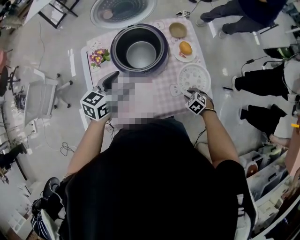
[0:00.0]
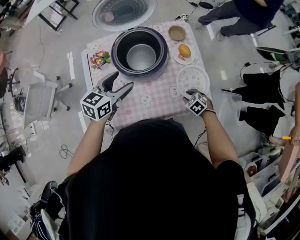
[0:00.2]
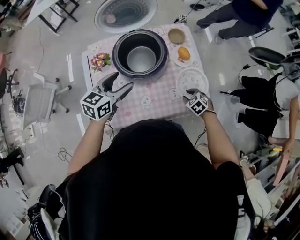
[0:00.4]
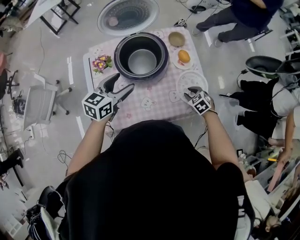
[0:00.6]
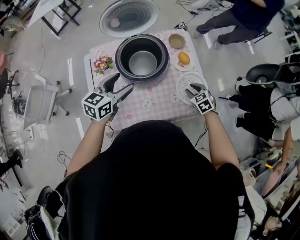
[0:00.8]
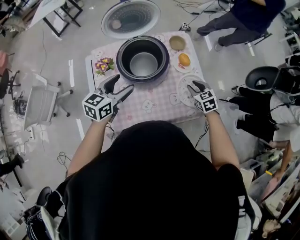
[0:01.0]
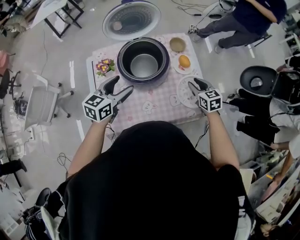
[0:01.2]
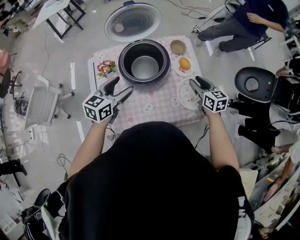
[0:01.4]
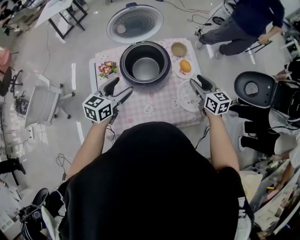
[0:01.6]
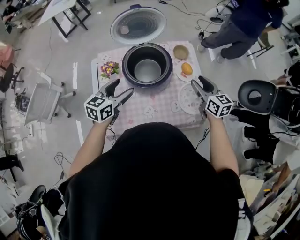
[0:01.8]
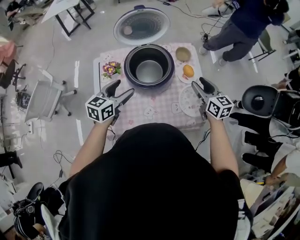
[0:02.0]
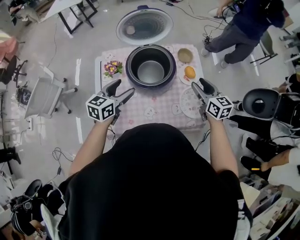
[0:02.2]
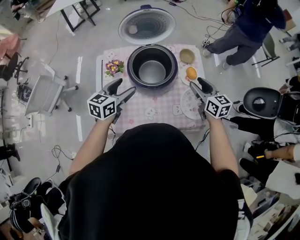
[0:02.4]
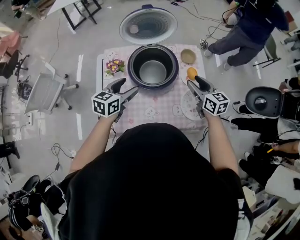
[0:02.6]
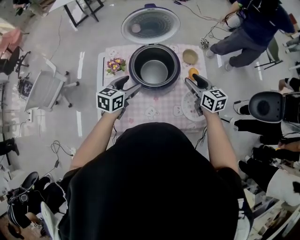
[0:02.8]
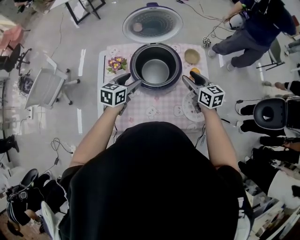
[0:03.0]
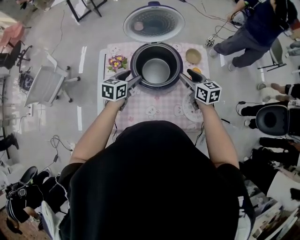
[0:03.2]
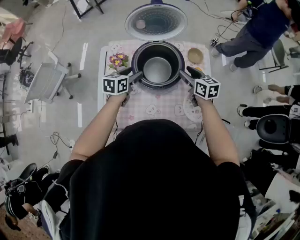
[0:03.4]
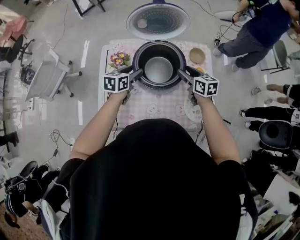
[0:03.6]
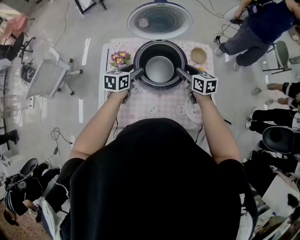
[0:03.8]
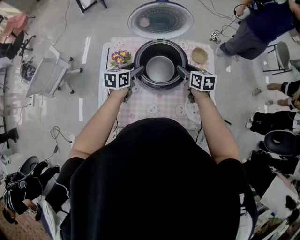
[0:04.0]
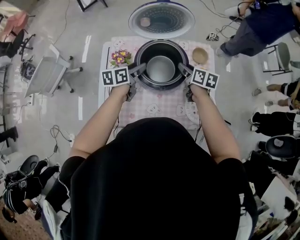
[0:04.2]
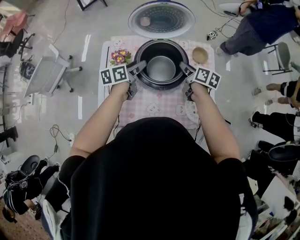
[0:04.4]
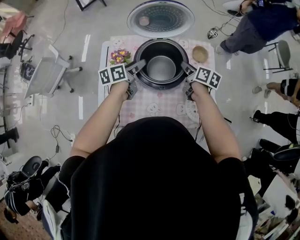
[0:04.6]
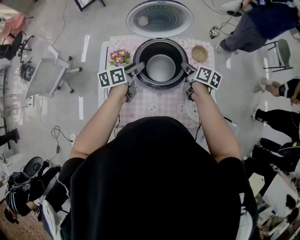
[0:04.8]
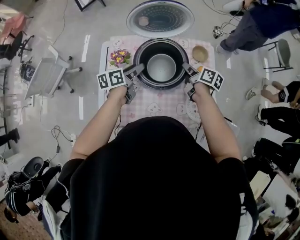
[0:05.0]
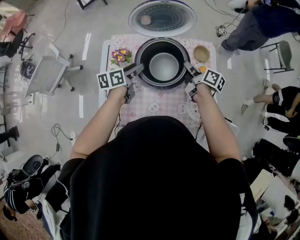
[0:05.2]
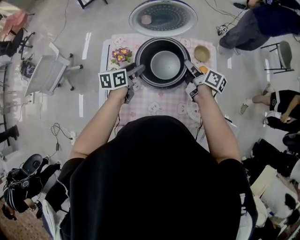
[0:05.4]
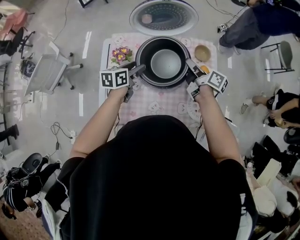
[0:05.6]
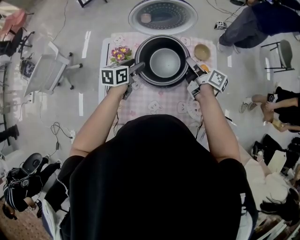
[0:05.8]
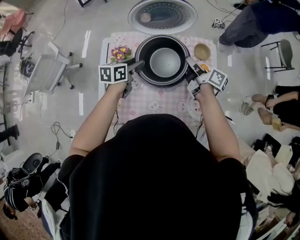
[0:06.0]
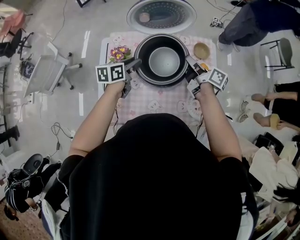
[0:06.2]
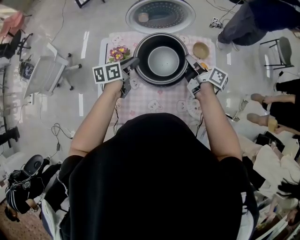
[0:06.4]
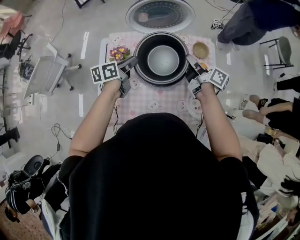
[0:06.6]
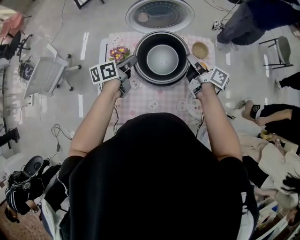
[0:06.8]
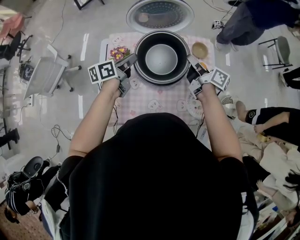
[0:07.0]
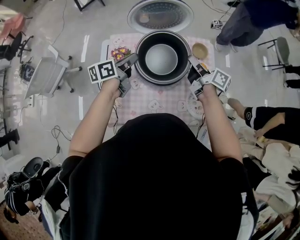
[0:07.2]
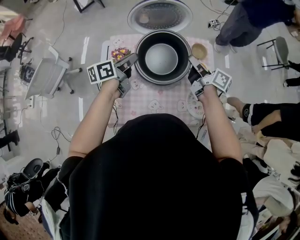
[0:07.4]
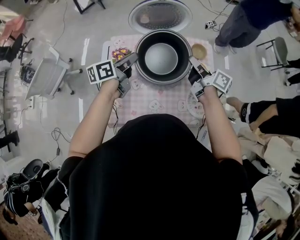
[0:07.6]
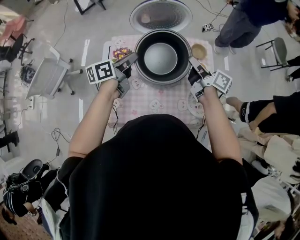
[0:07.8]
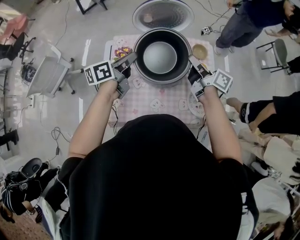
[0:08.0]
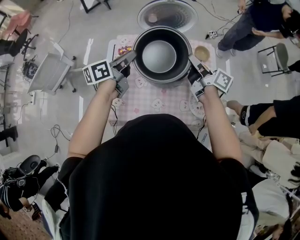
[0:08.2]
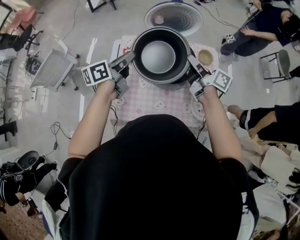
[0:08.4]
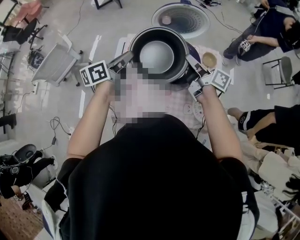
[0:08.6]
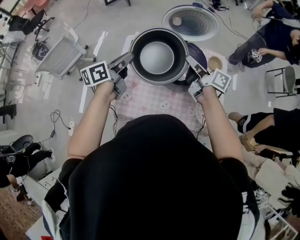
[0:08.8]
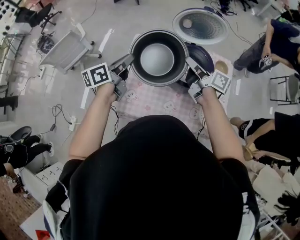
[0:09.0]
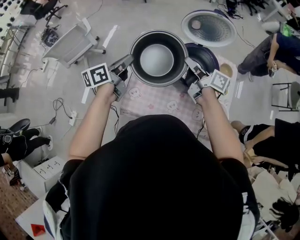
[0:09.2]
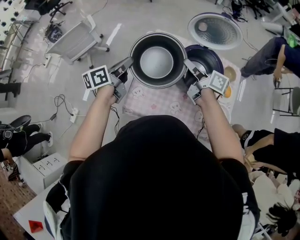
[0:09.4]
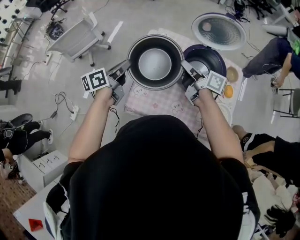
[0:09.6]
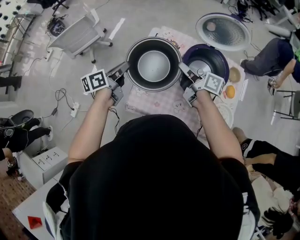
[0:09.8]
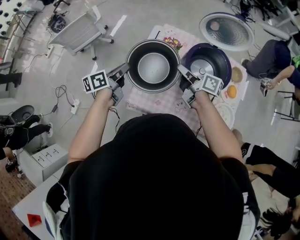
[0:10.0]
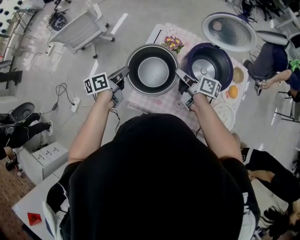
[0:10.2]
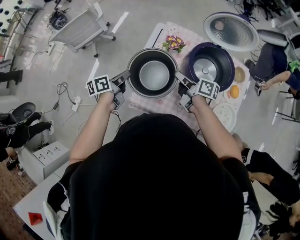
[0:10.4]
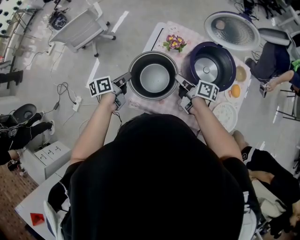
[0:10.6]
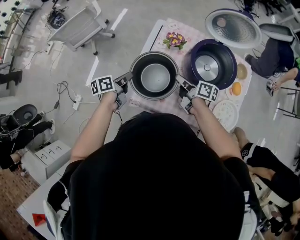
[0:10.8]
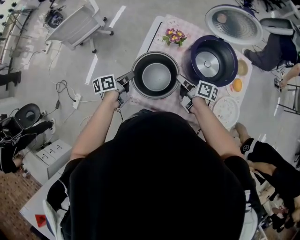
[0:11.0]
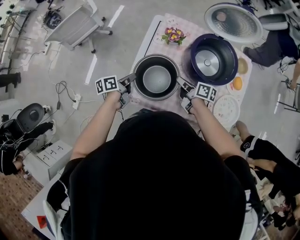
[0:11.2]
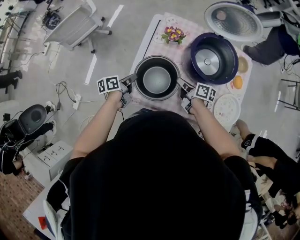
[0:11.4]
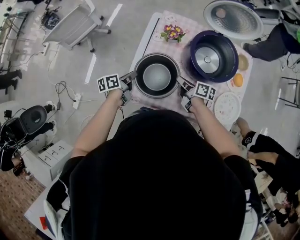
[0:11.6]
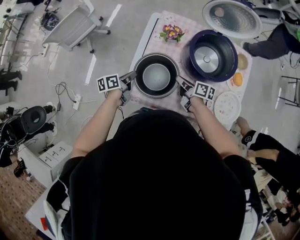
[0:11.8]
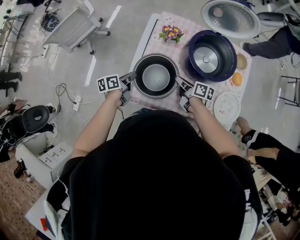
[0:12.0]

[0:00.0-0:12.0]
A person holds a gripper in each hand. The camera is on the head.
0.0 to 1.6 s: The right gripper heads upward and forward, covering about 30 cm, and tips its fingers upward by some 50 degrees. Meanwhile the left gripper changes place by about 5 cm.
1.6 to 3.0 s: The left gripper heads downward, covering approximately 5 cm. The right gripper shifts some 10 cm to the left and forward.
3.0 to 4.4 s: The right gripper is displaced forward and downward by about 10 cm, and turns by about 30 degrees. The left gripper goes roughly 5 cm forward, and turns by approximately 30 degrees.
4.4 to 6.0 s: The right gripper rotates roughly 20 degrees.
6.0 to 7.6 s: The right gripper changes place by approximately 5 cm, while the left gripper goes about 10 cm upward, rotates approximately 20 degrees, and closes its fingers.
7.6 to 9.0 s: The right gripper heads to the left, covering roughly 15 cm. Meanwhile the left gripper travels to the left and backward by approximately 15 cm.
9.0 to 10.4 s: The left gripper is displaced downward, to the left and backward by about 20 cm, and swivels roughly 20 degrees; the right gripper is displaced to the left and downward by about 20 cm.
10.4 to 12.0 s: Both grippers travel together downward, roughly 10 cm.

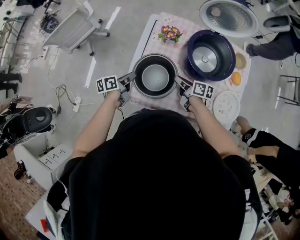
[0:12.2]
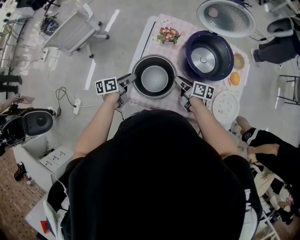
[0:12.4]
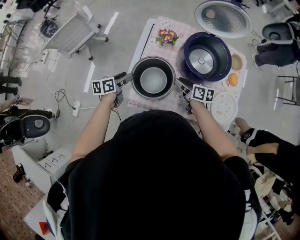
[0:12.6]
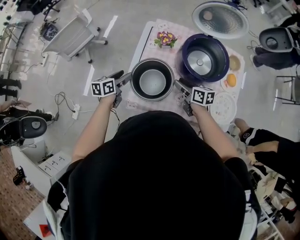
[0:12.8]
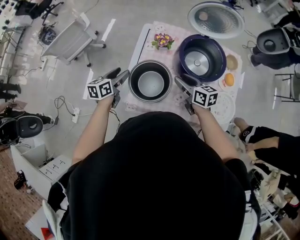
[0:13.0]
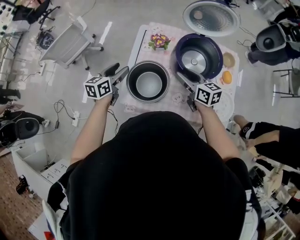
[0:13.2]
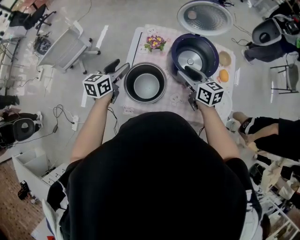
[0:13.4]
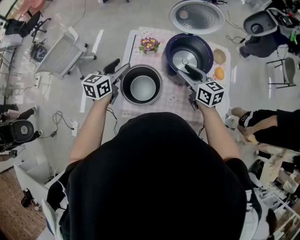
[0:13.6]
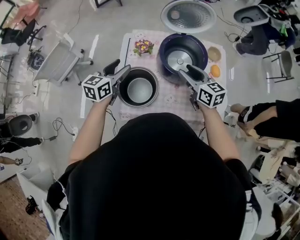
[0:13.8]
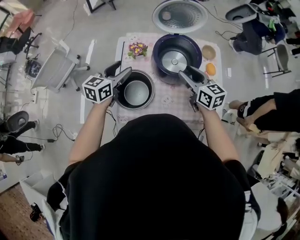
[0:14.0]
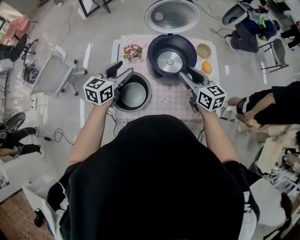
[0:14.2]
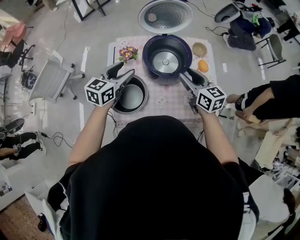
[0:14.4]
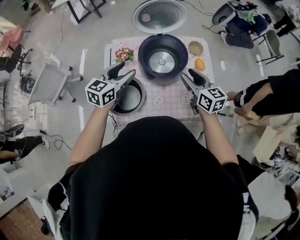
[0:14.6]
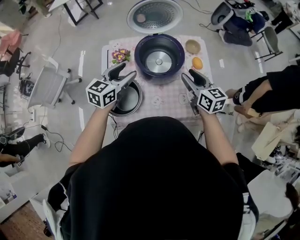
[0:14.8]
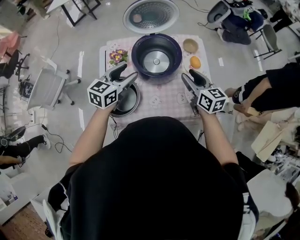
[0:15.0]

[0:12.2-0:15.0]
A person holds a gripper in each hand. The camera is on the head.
12.2 to 13.6 s: The right gripper shifts some 20 cm upward and to the right, rotates roughly 40 degrees, and opens up. The left gripper moves upward, some 20 cm, rolls clockwise, seen from behind, by about 40 degrees, and opens up.
13.6 to 15.0 s: The grippers both shift to the right by roughly 20 cm. The left gripper swivels approximately 20 degrees, while the right gripper changes its angle by roughly 20 degrees.

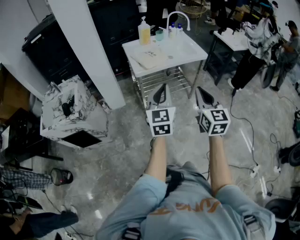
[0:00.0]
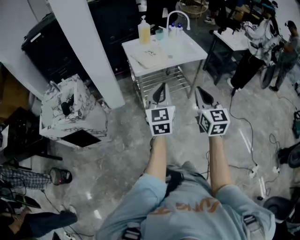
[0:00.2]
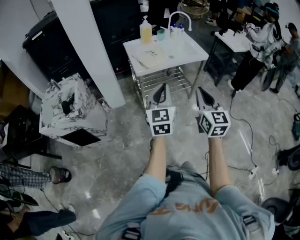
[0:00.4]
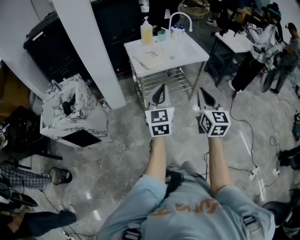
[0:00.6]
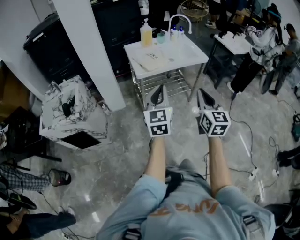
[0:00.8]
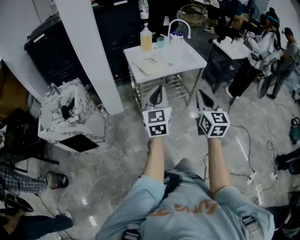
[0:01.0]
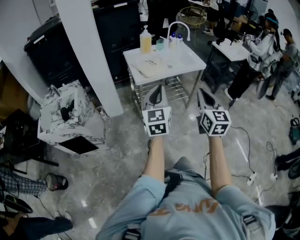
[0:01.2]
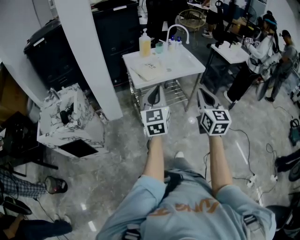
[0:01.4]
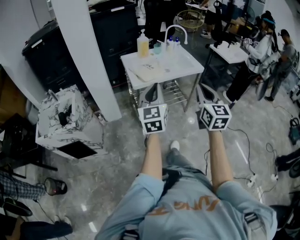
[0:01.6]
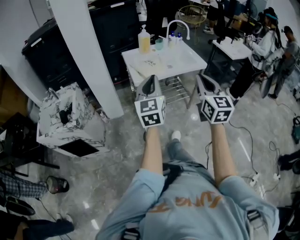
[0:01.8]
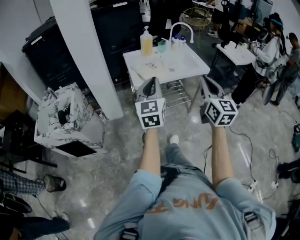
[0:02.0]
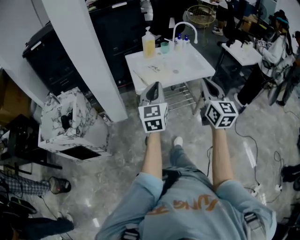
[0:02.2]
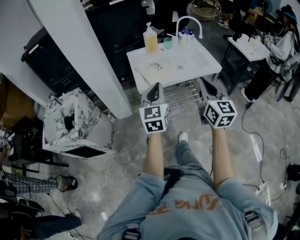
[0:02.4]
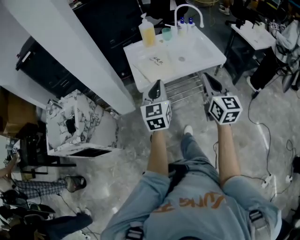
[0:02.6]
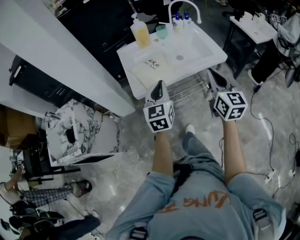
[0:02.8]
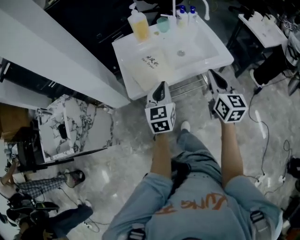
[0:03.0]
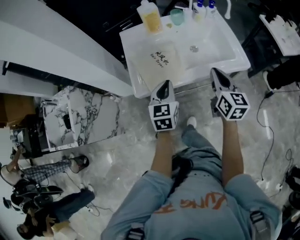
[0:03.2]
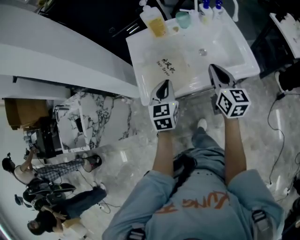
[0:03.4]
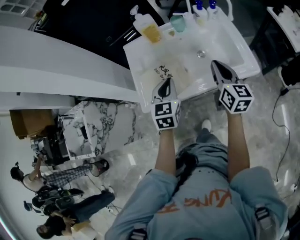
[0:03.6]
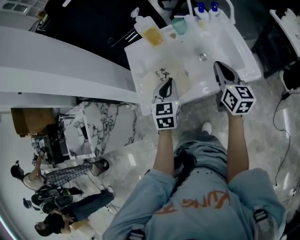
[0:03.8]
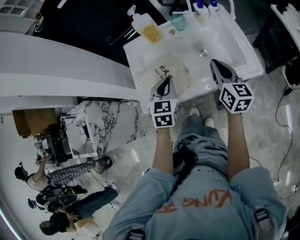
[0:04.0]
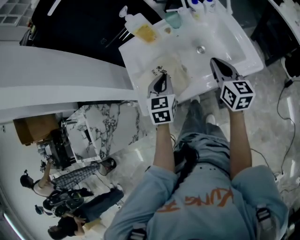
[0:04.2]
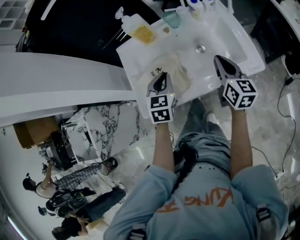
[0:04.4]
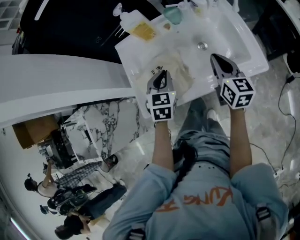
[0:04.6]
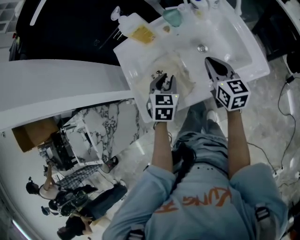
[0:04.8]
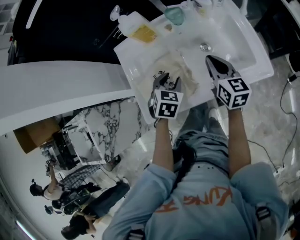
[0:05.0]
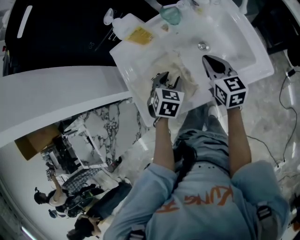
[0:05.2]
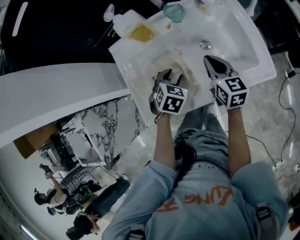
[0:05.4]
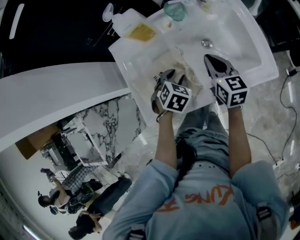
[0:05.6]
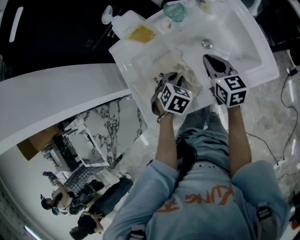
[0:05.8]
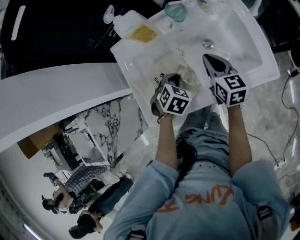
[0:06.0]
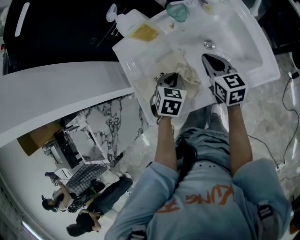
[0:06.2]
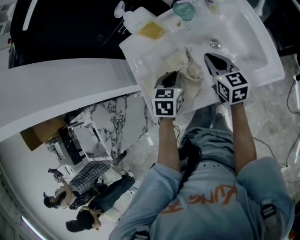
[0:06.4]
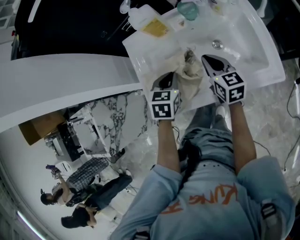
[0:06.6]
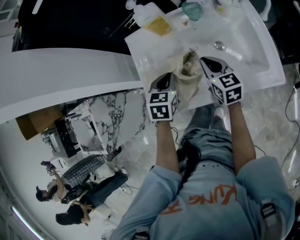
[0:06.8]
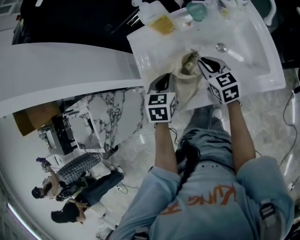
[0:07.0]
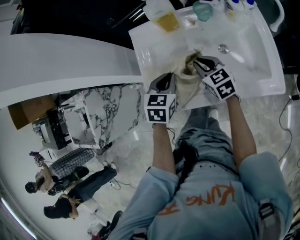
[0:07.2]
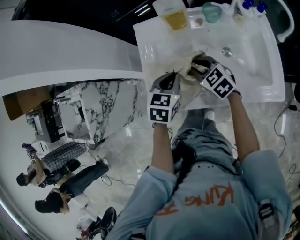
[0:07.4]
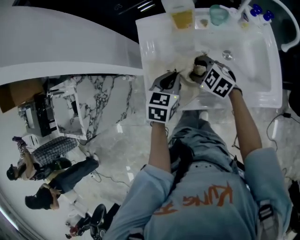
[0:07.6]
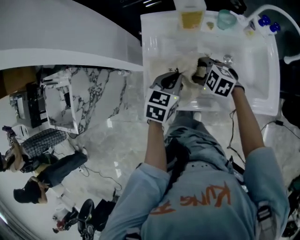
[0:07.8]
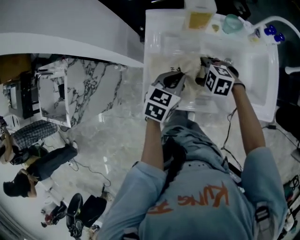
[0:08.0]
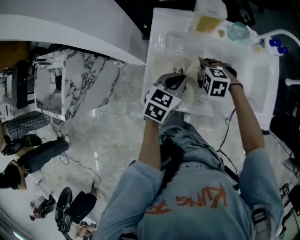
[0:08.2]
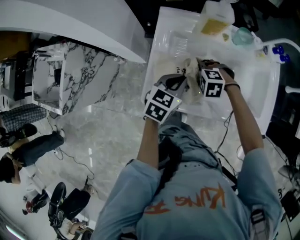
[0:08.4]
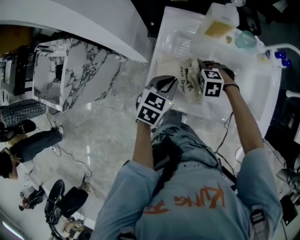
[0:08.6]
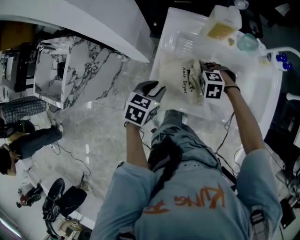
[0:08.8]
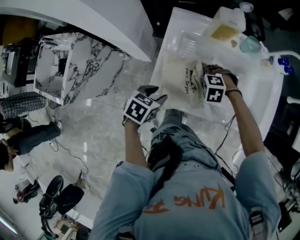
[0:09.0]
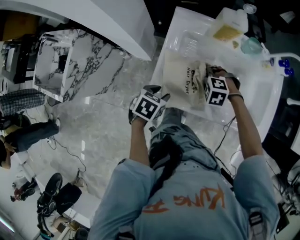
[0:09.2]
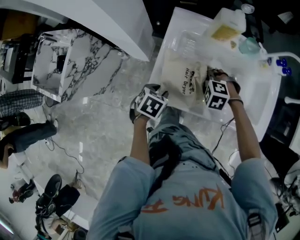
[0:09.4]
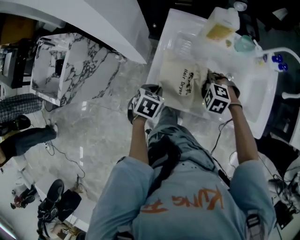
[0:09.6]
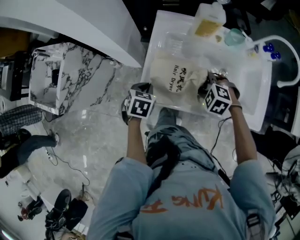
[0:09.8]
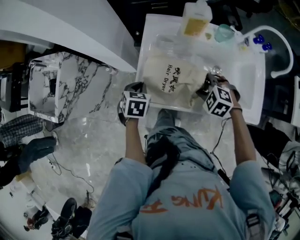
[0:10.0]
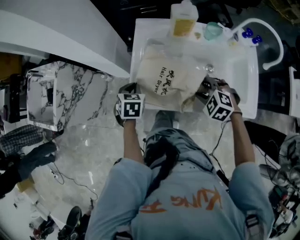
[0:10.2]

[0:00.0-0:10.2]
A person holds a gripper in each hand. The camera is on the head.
0.0 to 1.4 s: The left gripper ends up approximately 5 cm from where it was.
1.4 to 3.0 s: The right gripper is displaced forward by roughly 40 cm. The left gripper goes approximately 40 cm forward and downward, and changes its angle by about 20 degrees.
3.0 to 4.4 s: The left gripper travels forward by roughly 20 cm, and rotates roughly 20 degrees, while the right gripper shifts about 25 cm forward and downward.
4.4 to 5.8 s: The left gripper is displaced downward by roughly 15 cm, tilts its fingers some 30 degrees downward, and opens and closes again, while the right gripper goes some 15 cm downward, to the left and forward.
5.8 to 7.2 s: The right gripper heads to the left, covering some 10 cm, and swivels about 30 degrees. Meanwhile the left gripper is displaced upward and to the left by roughly 15 cm, and turns by roughly 40 degrees.
7.2 to 8.8 s: The left gripper moves roughly 15 cm, and opens its fingers, while the right gripper shifts by about 15 cm, angles its fingers downward, by roughly 40 degrees, and opens its fingers.
8.8 to 10.2 s: The right gripper changes place by approximately 15 cm, and swivels roughly 30 degrees. Meanwhile the left gripper closes up.
